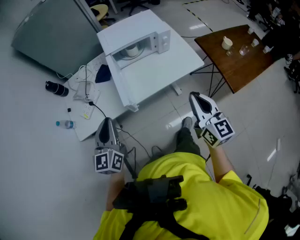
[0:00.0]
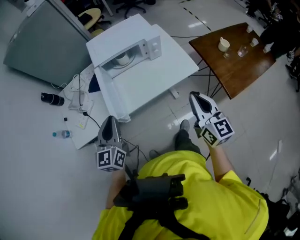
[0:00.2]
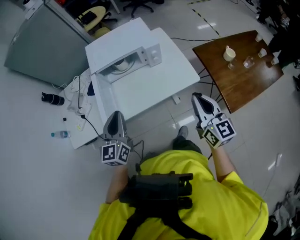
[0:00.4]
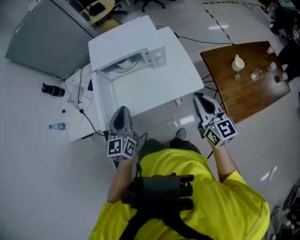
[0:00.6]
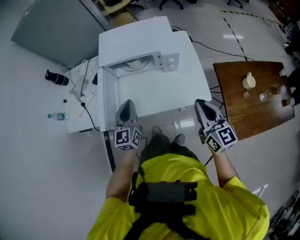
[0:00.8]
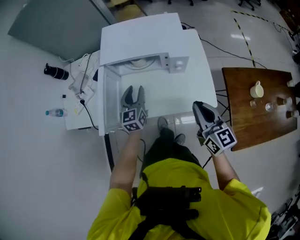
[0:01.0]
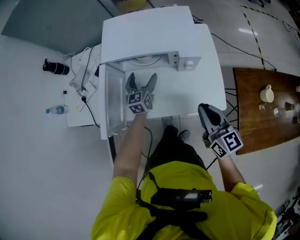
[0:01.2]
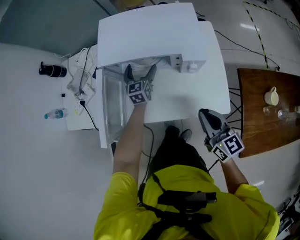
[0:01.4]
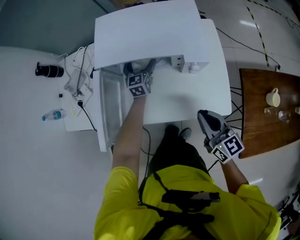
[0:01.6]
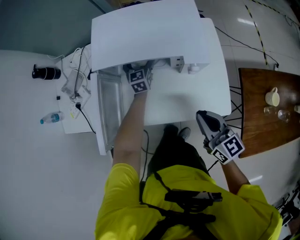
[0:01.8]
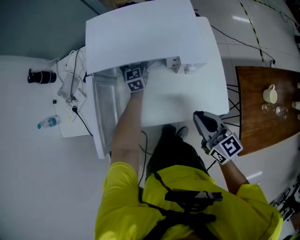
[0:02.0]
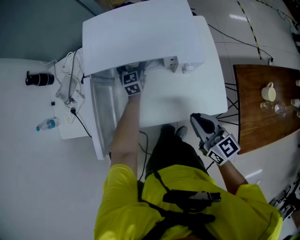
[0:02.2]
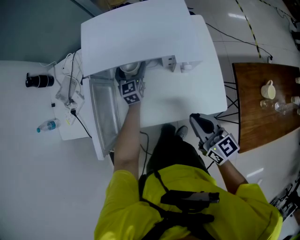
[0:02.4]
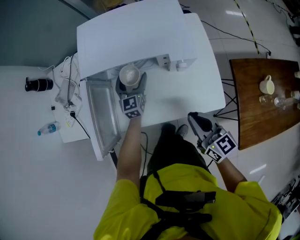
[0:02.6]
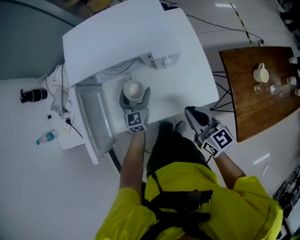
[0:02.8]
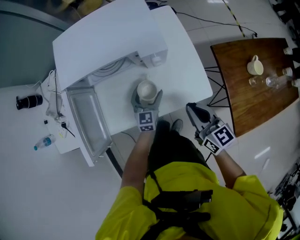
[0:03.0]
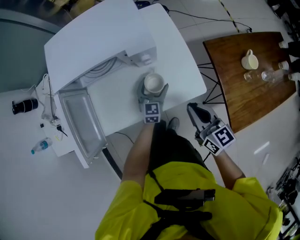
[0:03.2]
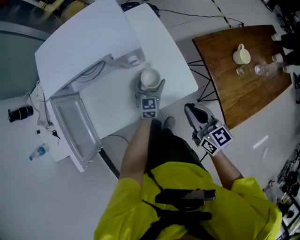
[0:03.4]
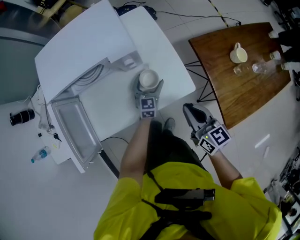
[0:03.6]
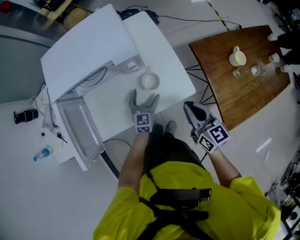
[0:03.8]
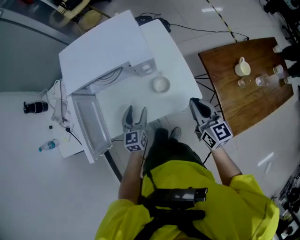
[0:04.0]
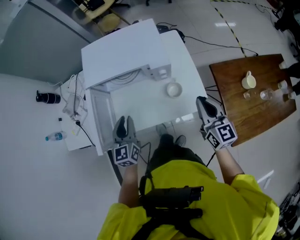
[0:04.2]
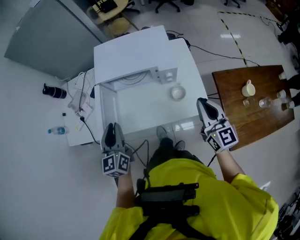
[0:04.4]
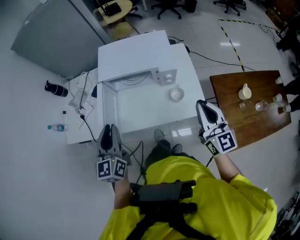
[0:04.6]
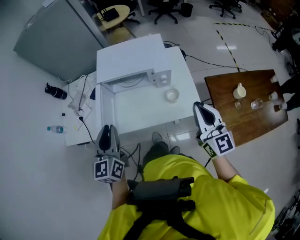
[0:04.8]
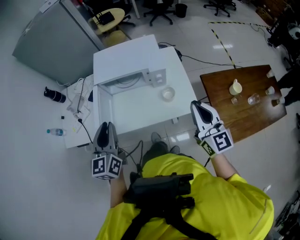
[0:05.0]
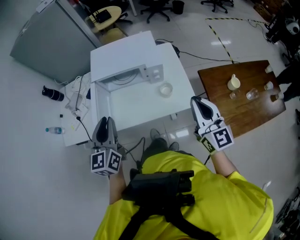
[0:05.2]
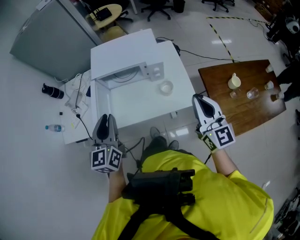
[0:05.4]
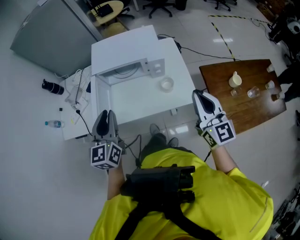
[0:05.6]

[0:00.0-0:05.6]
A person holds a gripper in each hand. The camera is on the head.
0:00.0 to 0:01.4: The right gripper ends up about 35 cm from where it was, and swivels about 30 degrees, while the left gripper shifts by some 60 cm, changes its angle by about 20 degrees, and opens its fingers.
0:01.4 to 0:02.8: The left gripper is displaced backward by some 10 cm.
0:02.8 to 0:04.2: The left gripper moves upward and backward, approximately 20 cm, goes to the right and returns, approximately 20 cm each way, and closes up. Meanwhile the right gripper heads upward and to the right, covering approximately 15 cm.
0:04.2 to 0:05.6: The grippers both shift upward and backward by about 20 cm.

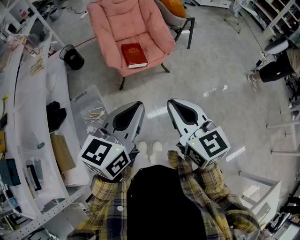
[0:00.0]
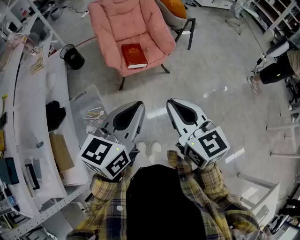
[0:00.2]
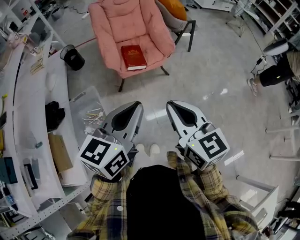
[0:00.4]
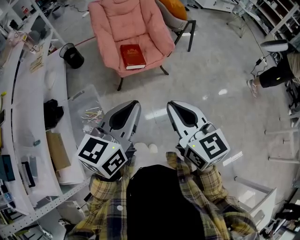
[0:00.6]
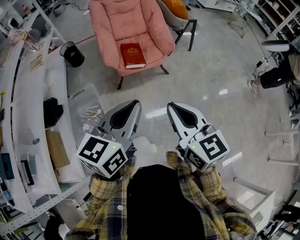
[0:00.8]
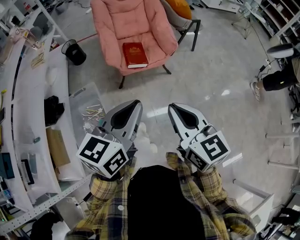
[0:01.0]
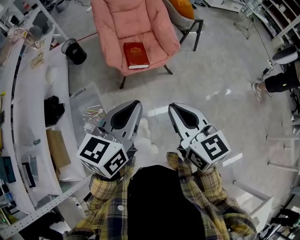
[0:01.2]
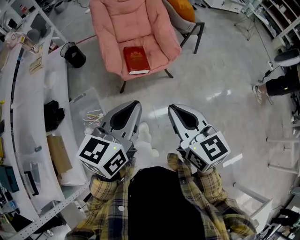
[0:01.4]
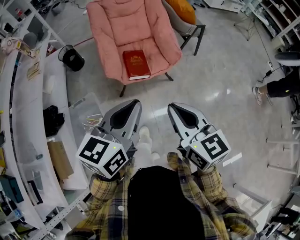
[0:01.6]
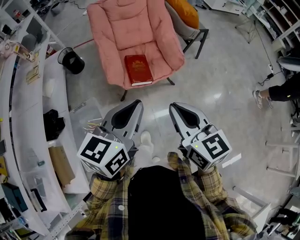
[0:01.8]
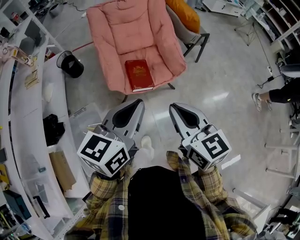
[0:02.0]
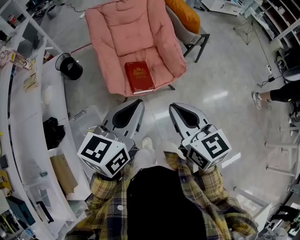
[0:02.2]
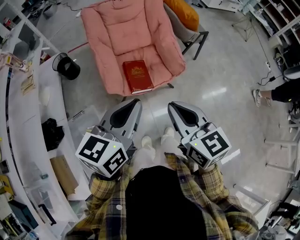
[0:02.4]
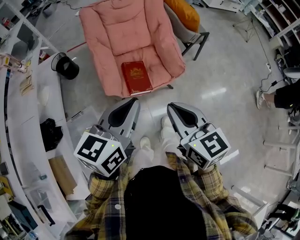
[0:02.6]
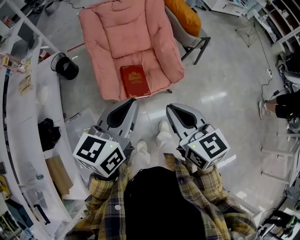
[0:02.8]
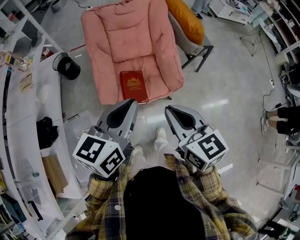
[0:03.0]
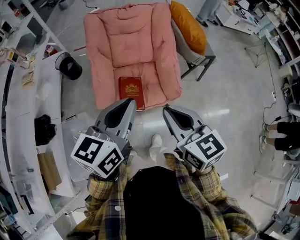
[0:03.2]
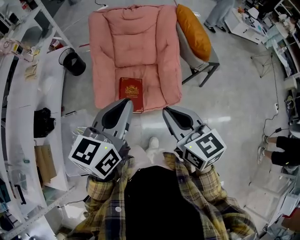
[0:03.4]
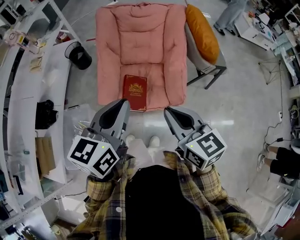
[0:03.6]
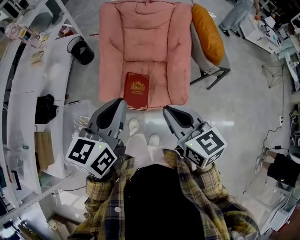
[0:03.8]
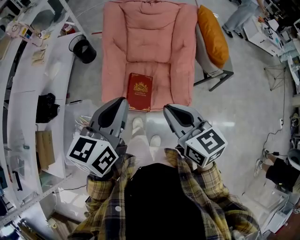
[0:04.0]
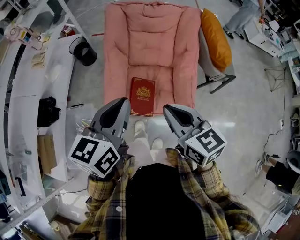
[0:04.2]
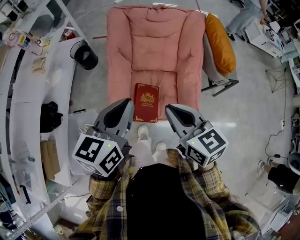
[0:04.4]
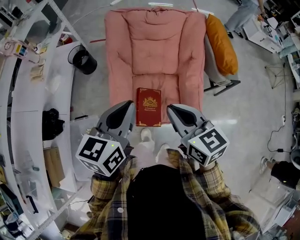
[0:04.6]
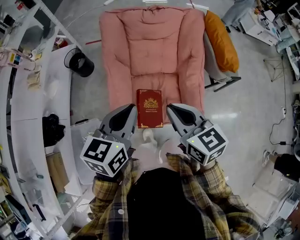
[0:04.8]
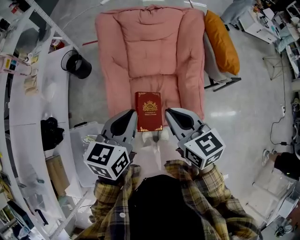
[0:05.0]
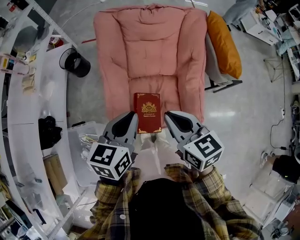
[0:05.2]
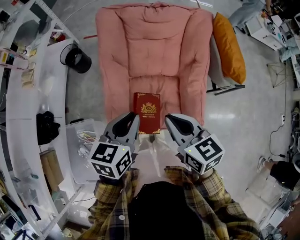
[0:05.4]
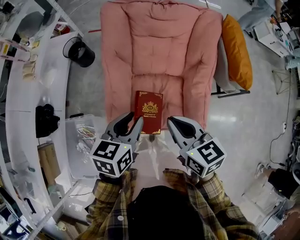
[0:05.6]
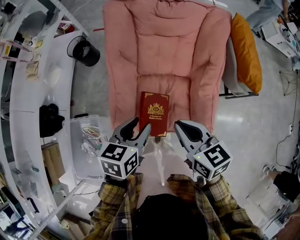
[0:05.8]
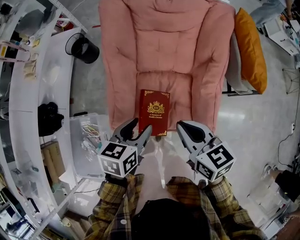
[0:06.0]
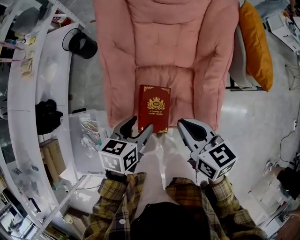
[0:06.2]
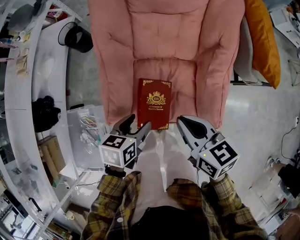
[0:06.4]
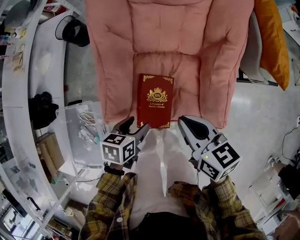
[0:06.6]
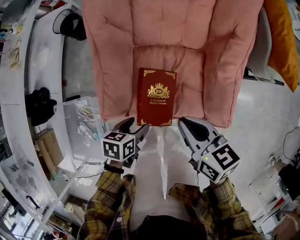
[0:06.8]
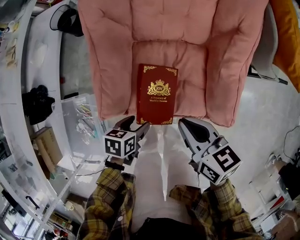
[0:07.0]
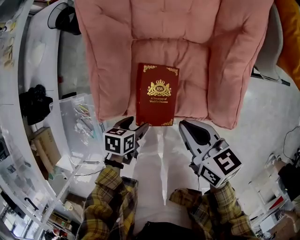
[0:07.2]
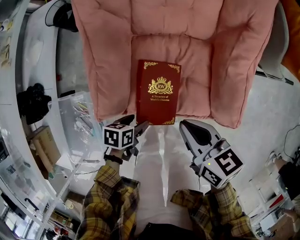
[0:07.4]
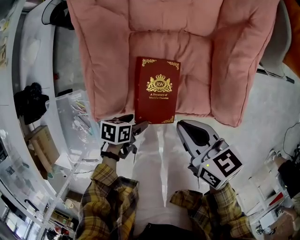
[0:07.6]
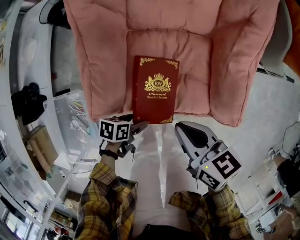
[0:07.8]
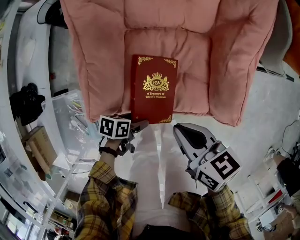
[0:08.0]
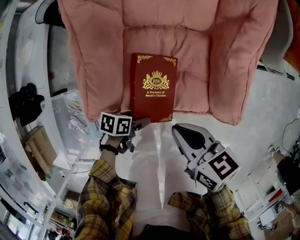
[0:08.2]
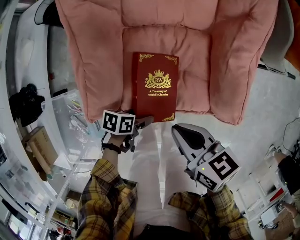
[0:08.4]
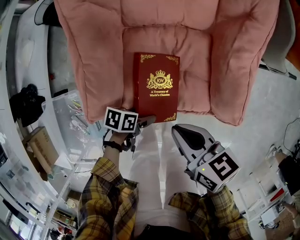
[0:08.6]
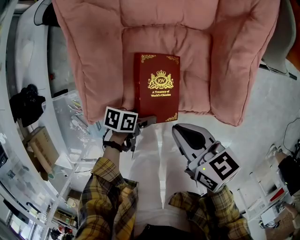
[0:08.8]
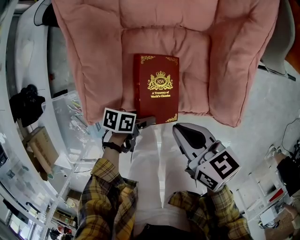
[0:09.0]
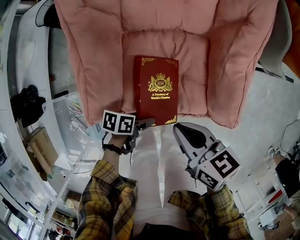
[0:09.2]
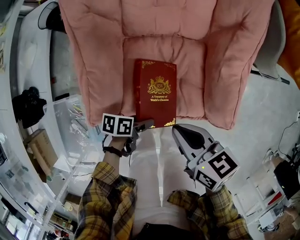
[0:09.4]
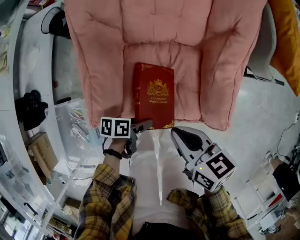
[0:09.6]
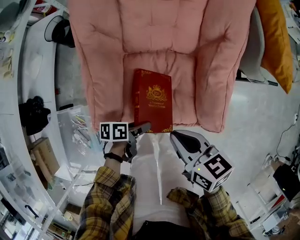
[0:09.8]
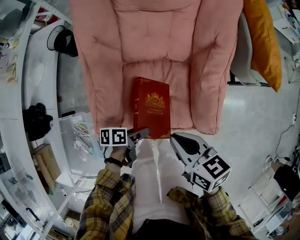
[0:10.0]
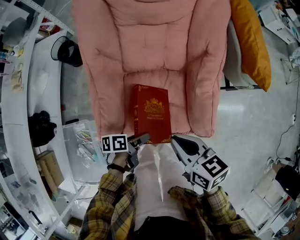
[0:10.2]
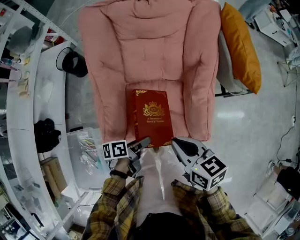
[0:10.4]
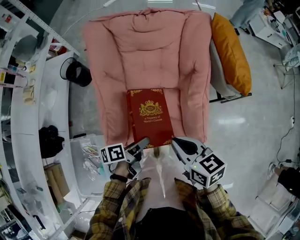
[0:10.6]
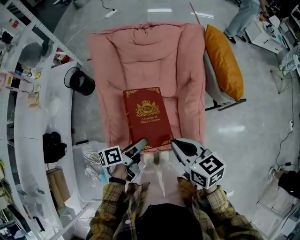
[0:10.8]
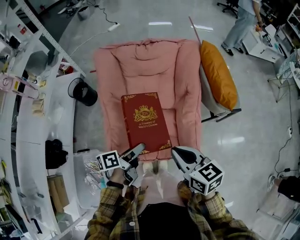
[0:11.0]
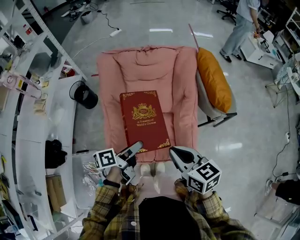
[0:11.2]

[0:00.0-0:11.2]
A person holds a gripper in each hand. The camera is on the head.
0:00.0 to 0:01.6: Both grippers travel together forward, roughly 15 cm.
0:01.6 to 0:03.2: The grippers both shift forward by roughly 25 cm.
0:03.2 to 0:04.8: The grippers both shift forward by approximately 20 cm.
0:04.8 to 0:06.4: The left gripper goes about 30 cm downward, changes its angle by some 30 degrees, and opens its fingers. The right gripper heads downward, covering approximately 20 cm.
0:06.4 to 0:08.0: The right gripper heads downward, covering about 15 cm, while the left gripper heads downward, covering about 25 cm, and changes its angle by roughly 30 degrees.
0:08.0 to 0:09.6: The left gripper ends up some 10 cm from where it was.
0:09.6 to 0:11.2: Both grippers move upward, roughly 30 cm. The right gripper turns by approximately 20 degrees. The left gripper rotates approximately 40 degrees.

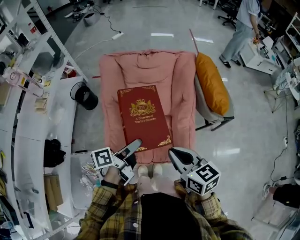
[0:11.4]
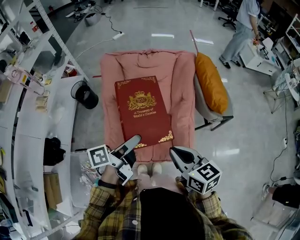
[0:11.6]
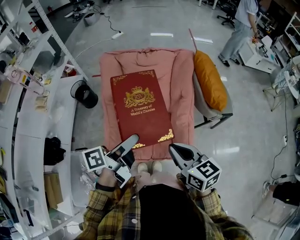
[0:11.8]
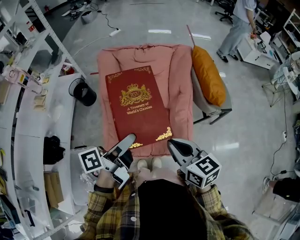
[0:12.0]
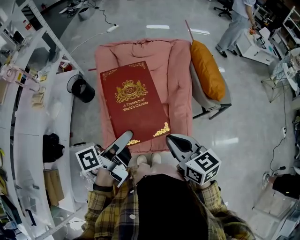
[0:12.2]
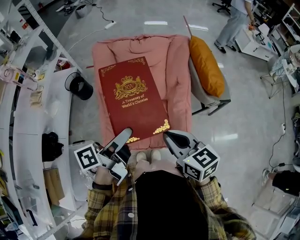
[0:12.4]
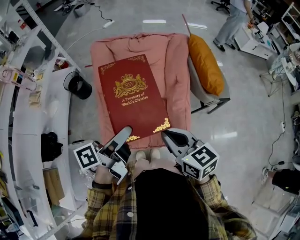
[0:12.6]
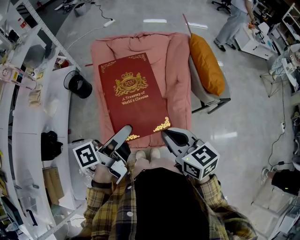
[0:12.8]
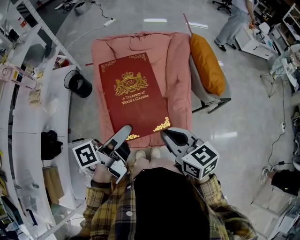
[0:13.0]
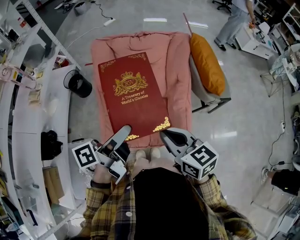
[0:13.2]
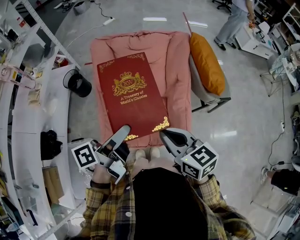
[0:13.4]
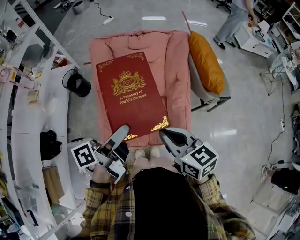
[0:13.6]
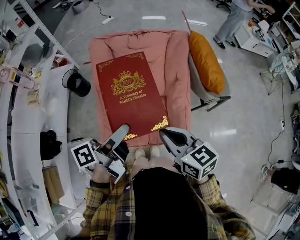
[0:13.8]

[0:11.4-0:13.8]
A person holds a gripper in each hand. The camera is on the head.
0:11.4 to 0:12.6: The left gripper heads upward, covering approximately 10 cm.
0:12.6 to 0:13.8: Neither gripper changes place.

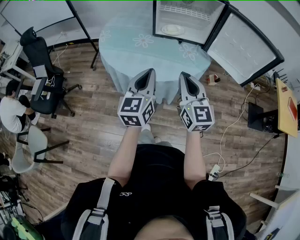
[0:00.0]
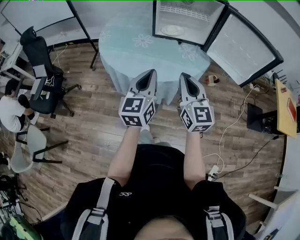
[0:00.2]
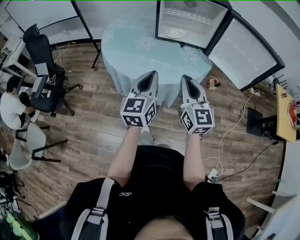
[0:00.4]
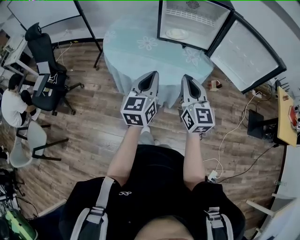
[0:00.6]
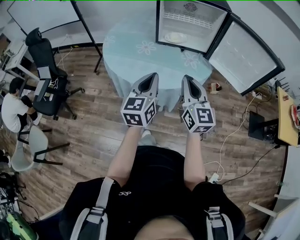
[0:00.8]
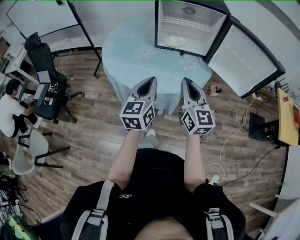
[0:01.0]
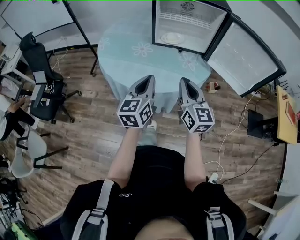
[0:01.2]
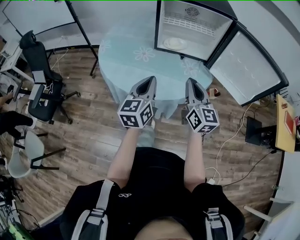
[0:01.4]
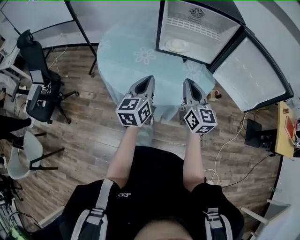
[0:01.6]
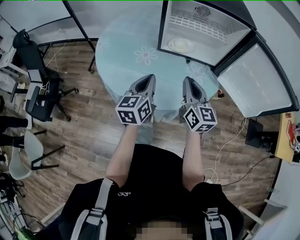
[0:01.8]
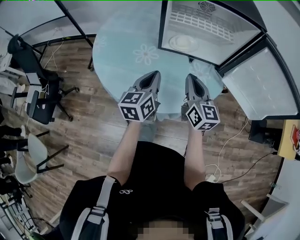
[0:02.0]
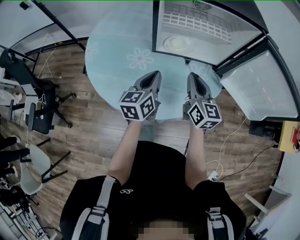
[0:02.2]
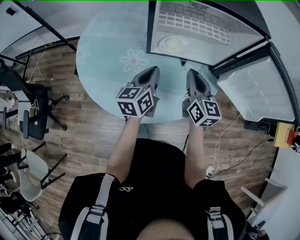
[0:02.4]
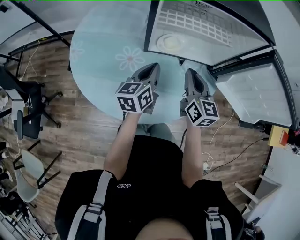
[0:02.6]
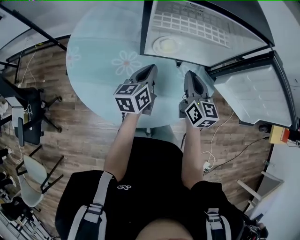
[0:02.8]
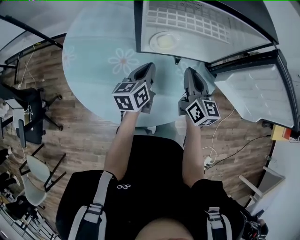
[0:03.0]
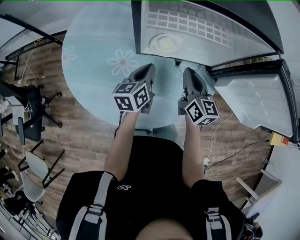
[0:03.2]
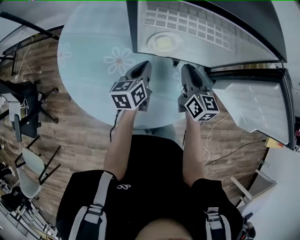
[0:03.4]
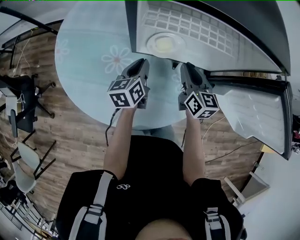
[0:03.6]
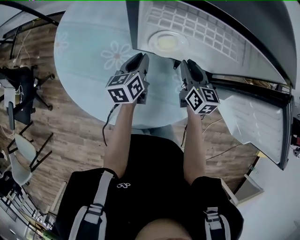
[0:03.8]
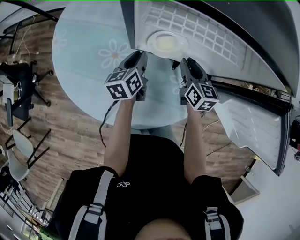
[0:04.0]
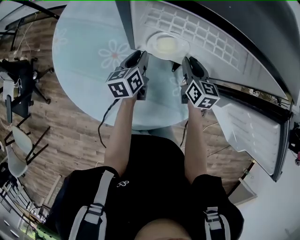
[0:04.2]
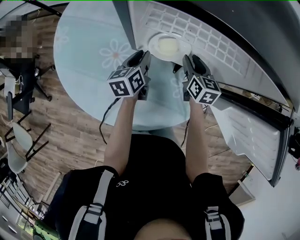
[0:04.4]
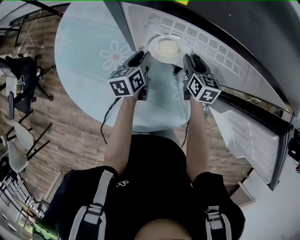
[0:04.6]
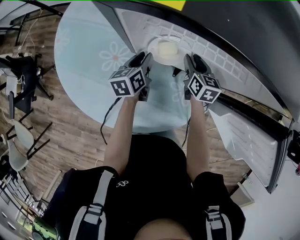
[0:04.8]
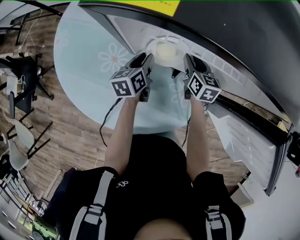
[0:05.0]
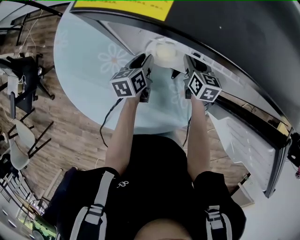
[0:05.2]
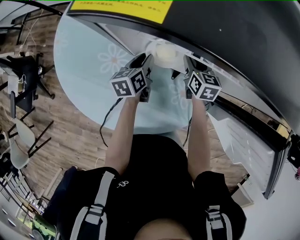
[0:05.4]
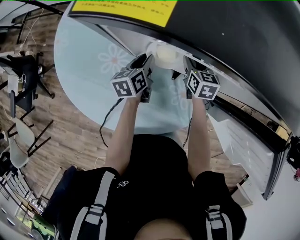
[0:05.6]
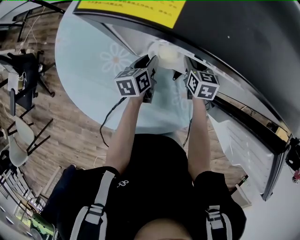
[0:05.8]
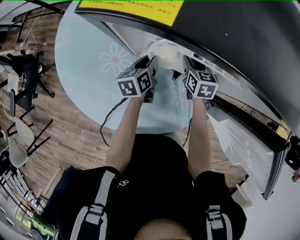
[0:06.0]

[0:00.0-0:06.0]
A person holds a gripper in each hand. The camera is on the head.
0:00.0 to 0:01.6: Both grippers travel together forward, approximately 15 cm.
0:01.6 to 0:03.0: Both grippers travel together forward, roughly 25 cm. The left gripper rotates roughly 20 degrees.
0:03.0 to 0:04.4: The right gripper travels forward and downward by roughly 20 cm, changes its angle by about 30 degrees, and opens up, while the left gripper moves downward and forward, approximately 10 cm, swivels approximately 20 degrees, and opens up.
0:04.4 to 0:06.0: The right gripper ends up about 5 cm from where it was.
